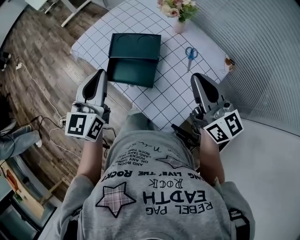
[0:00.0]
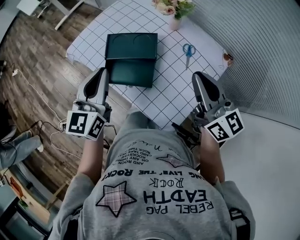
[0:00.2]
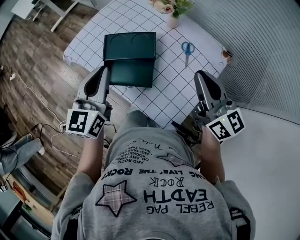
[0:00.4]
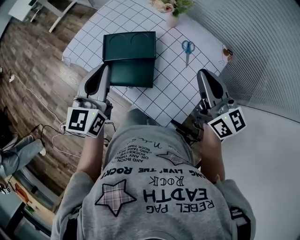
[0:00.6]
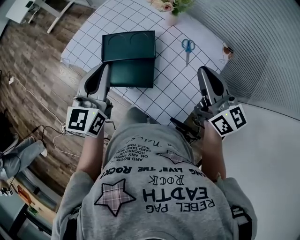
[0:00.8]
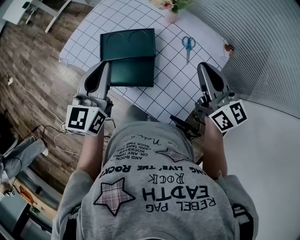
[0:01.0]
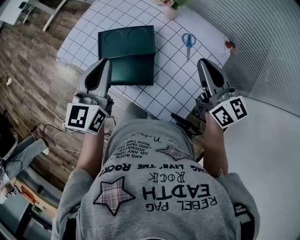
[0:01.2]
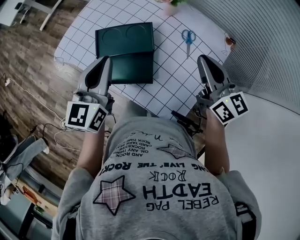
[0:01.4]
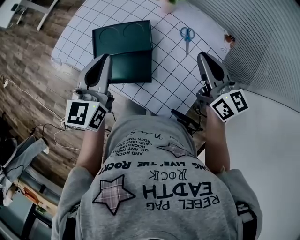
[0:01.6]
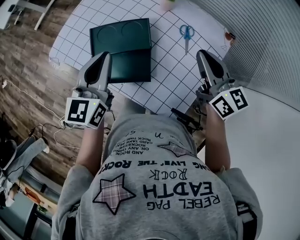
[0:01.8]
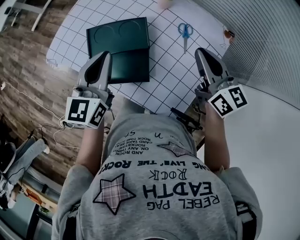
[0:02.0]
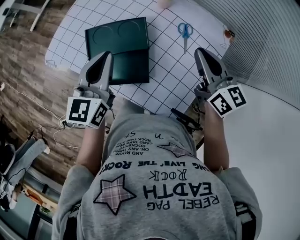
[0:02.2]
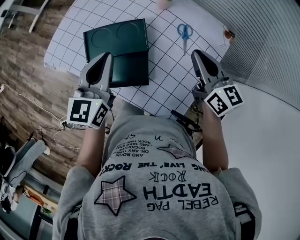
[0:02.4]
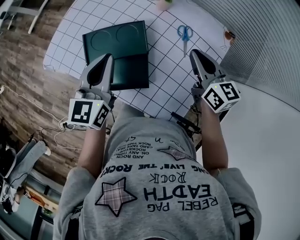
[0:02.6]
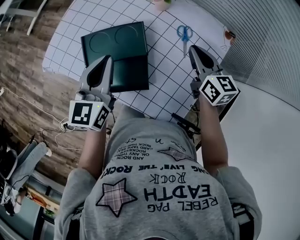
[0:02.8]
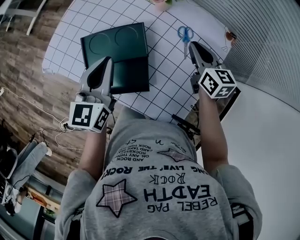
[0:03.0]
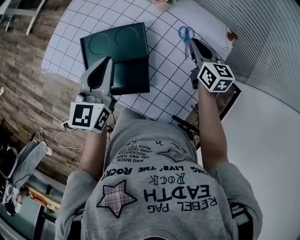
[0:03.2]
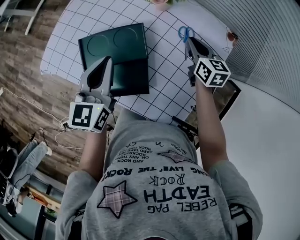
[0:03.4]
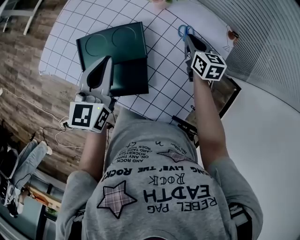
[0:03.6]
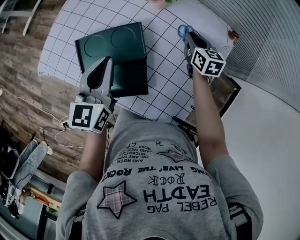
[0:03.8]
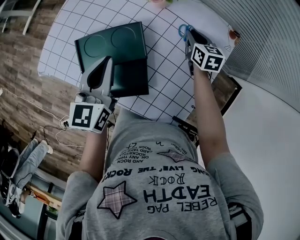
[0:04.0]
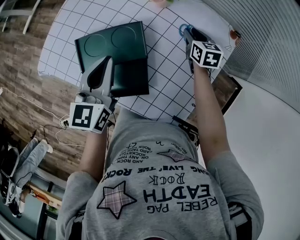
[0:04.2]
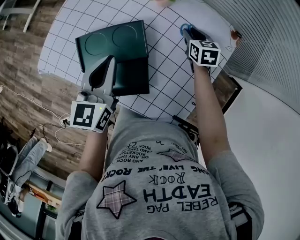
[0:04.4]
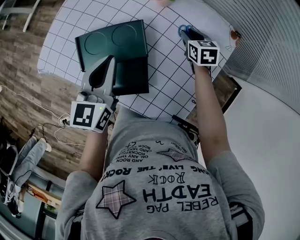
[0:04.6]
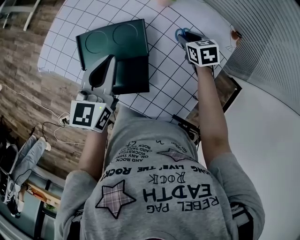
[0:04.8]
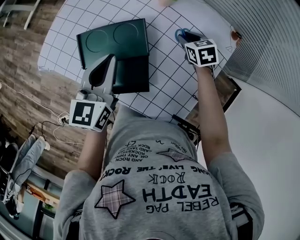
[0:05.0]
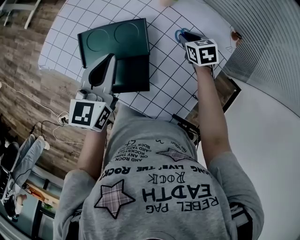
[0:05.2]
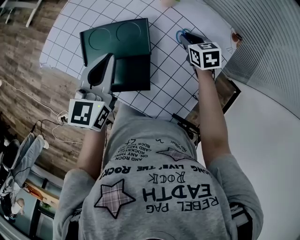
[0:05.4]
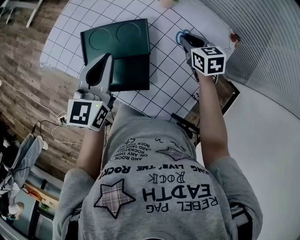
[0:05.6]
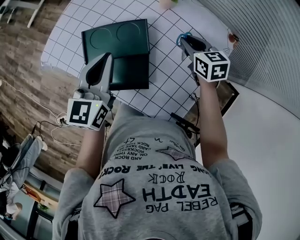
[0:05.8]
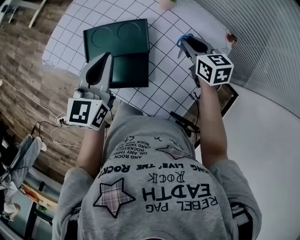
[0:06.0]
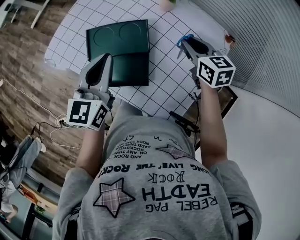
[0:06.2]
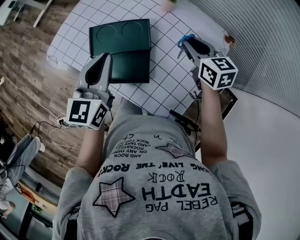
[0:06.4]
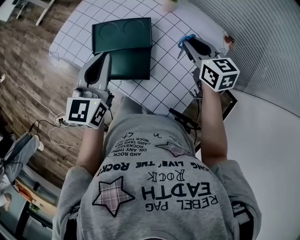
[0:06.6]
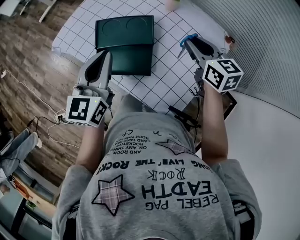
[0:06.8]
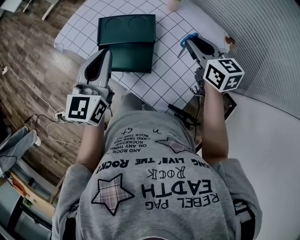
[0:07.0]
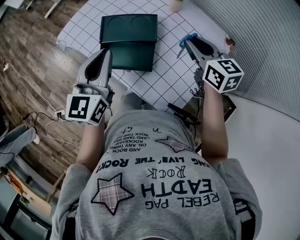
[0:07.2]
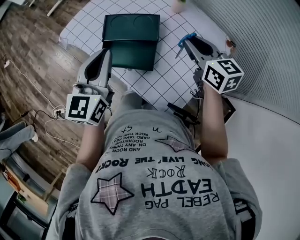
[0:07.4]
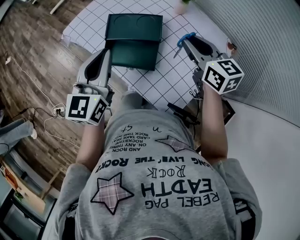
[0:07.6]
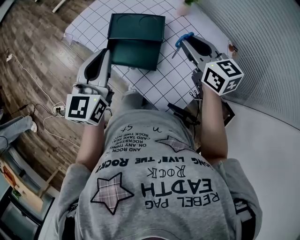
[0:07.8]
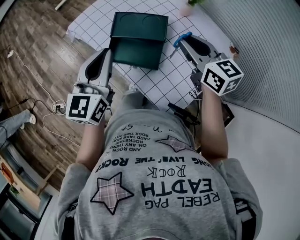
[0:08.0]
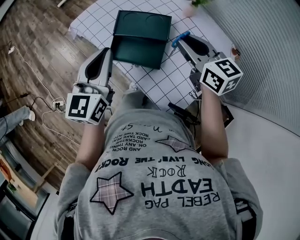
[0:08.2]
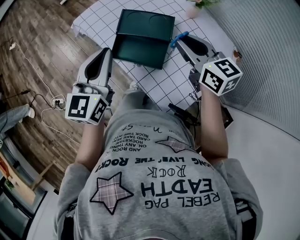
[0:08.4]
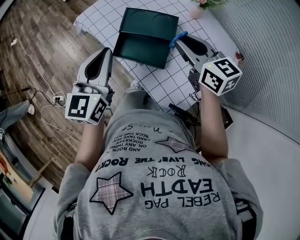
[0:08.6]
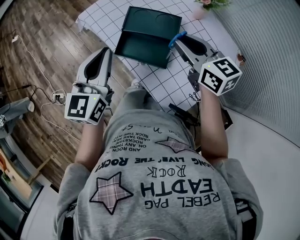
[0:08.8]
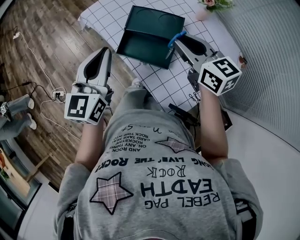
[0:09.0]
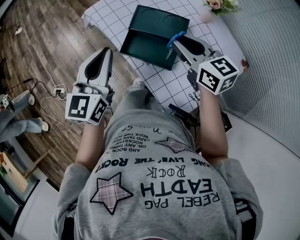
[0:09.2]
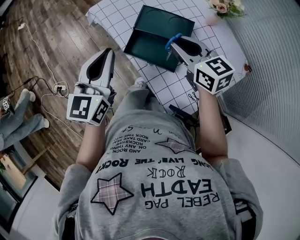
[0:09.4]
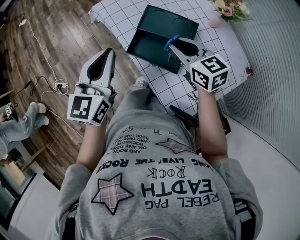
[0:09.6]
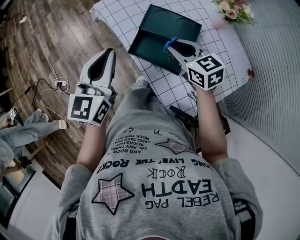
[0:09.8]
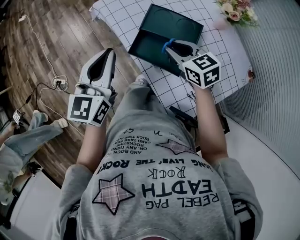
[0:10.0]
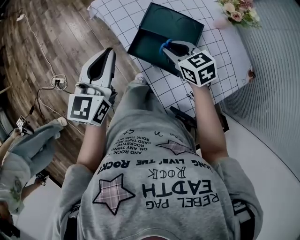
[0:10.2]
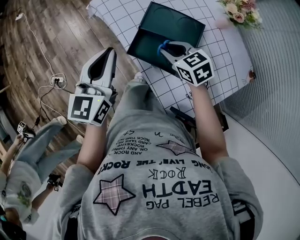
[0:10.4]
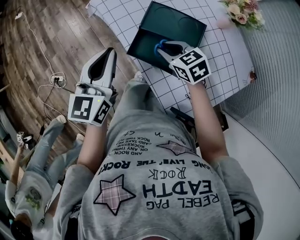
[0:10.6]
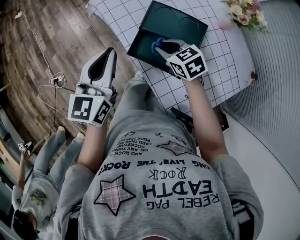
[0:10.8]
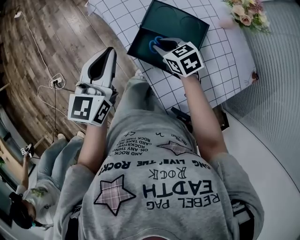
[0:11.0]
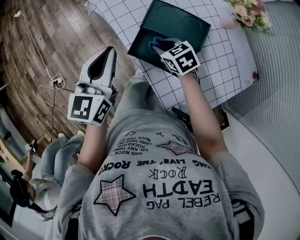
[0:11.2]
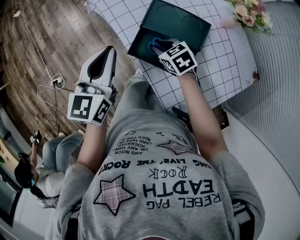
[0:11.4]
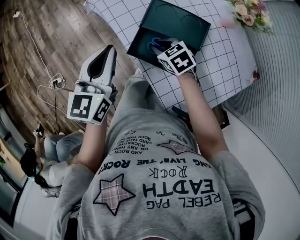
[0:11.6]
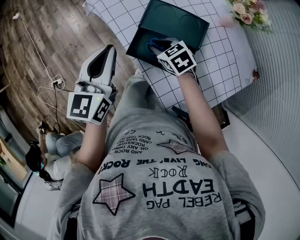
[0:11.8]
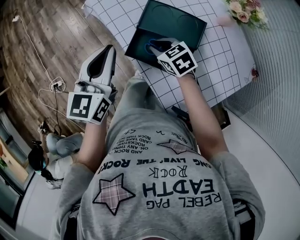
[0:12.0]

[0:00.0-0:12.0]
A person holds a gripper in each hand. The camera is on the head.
0:00.0 to 0:01.6: The right gripper shifts roughly 10 cm downward and forward, while the left gripper moves forward and downward, about 10 cm.
0:01.6 to 0:03.0: The left gripper travels downward by some 5 cm. Meanwhile the right gripper heads downward and forward, covering approximately 15 cm.
0:03.0 to 0:04.4: The right gripper moves downward and forward, roughly 15 cm, rotates about 20 degrees, and opens up.
0:04.4 to 0:06.0: The right gripper moves upward, backward and to the left, about 15 cm.
0:06.0 to 0:07.6: The right gripper heads upward, to the left and backward, covering roughly 15 cm, and changes its angle by roughly 20 degrees; the left gripper moves backward, upward and to the left, about 15 cm.
0:07.6 to 0:09.0: The left gripper moves to the left, about 5 cm, while the right gripper heads to the left, covering about 10 cm.
0:09.0 to 0:10.4: The left gripper moves about 5 cm; the right gripper goes approximately 15 cm downward and to the left, and swivels some 30 degrees.
0:10.4 to 0:12.0: The right gripper shifts some 5 cm downward.

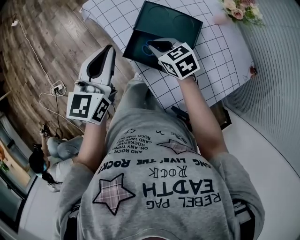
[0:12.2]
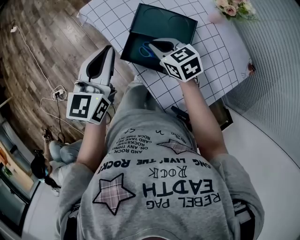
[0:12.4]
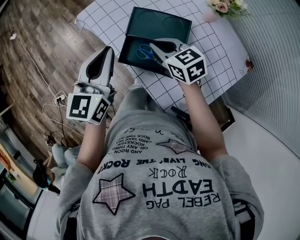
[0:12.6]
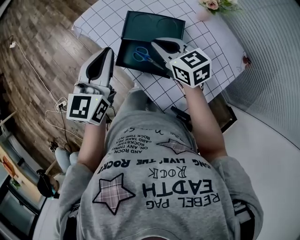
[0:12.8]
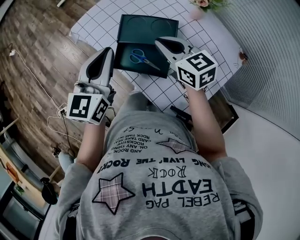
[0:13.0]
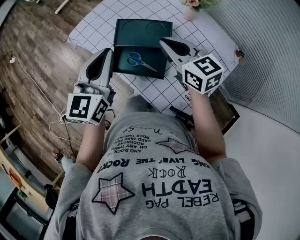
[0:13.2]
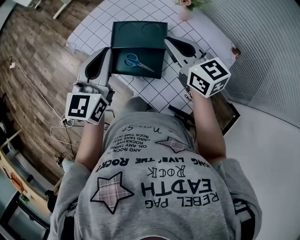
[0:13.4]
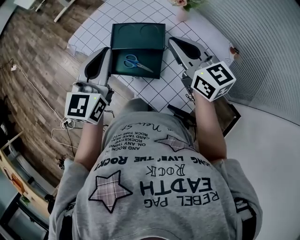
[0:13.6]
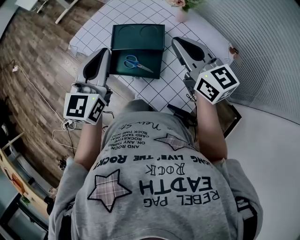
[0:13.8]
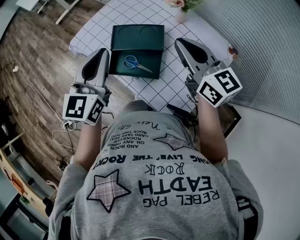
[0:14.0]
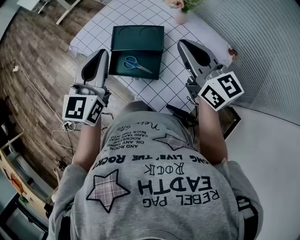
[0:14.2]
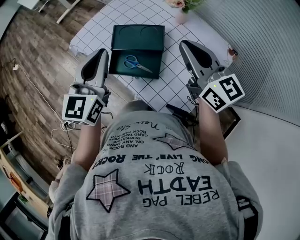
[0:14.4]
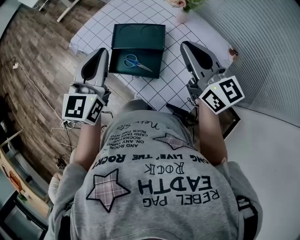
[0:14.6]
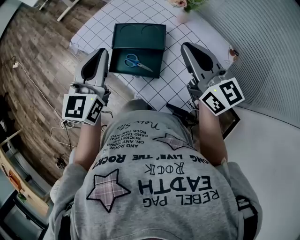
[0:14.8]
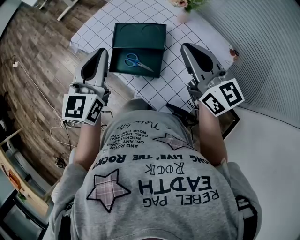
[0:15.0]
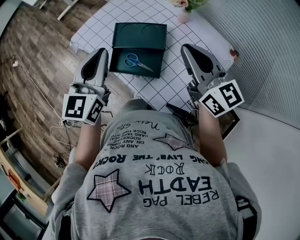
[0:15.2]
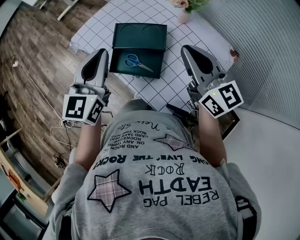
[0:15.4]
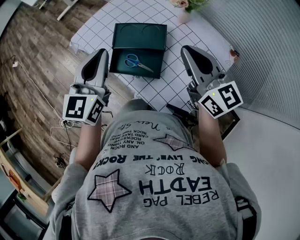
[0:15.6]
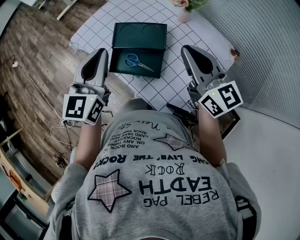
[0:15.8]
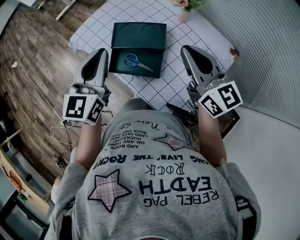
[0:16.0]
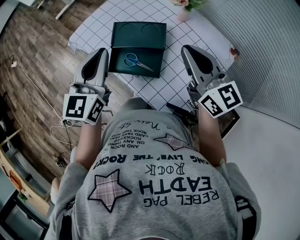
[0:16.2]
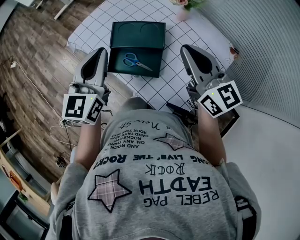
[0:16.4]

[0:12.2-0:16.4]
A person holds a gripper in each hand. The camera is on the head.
0:12.2 to 0:13.6: The right gripper moves upward and to the right, approximately 25 cm, and angles its fingers upward, by roughly 30 degrees. Meanwhile the left gripper goes roughly 10 cm to the right and upward.
0:13.6 to 0:15.0: The right gripper shifts by roughly 5 cm.
0:15.0 to 0:16.4: There are only small adjustments of the grippers.

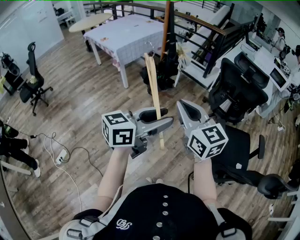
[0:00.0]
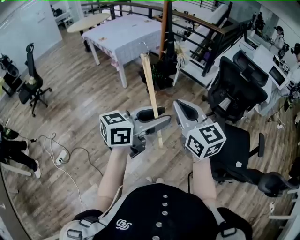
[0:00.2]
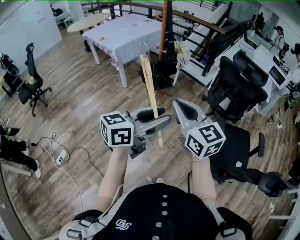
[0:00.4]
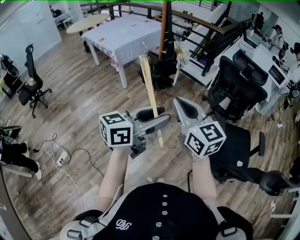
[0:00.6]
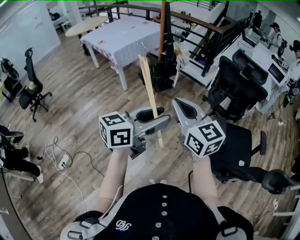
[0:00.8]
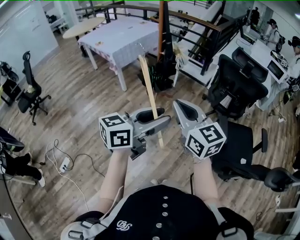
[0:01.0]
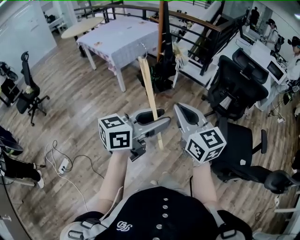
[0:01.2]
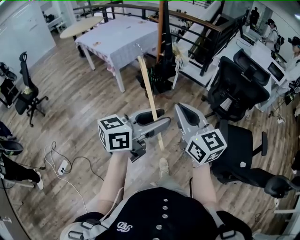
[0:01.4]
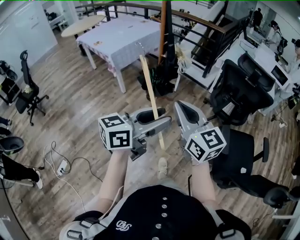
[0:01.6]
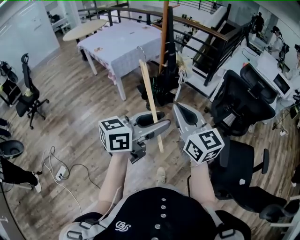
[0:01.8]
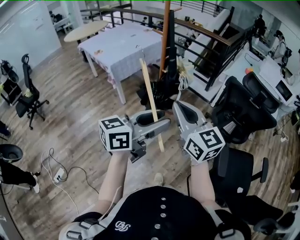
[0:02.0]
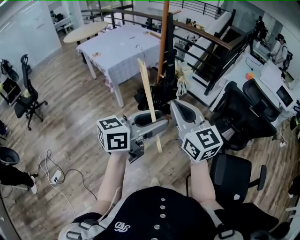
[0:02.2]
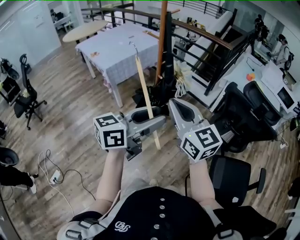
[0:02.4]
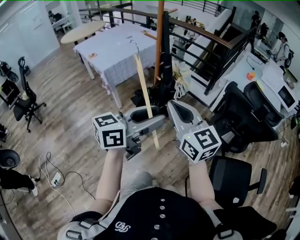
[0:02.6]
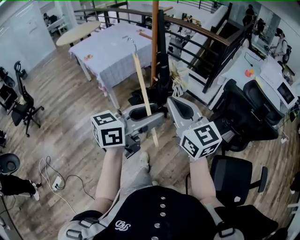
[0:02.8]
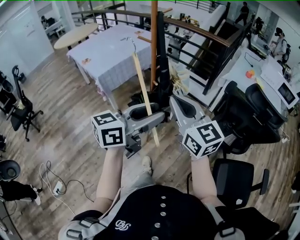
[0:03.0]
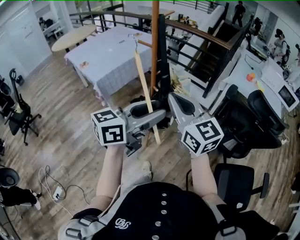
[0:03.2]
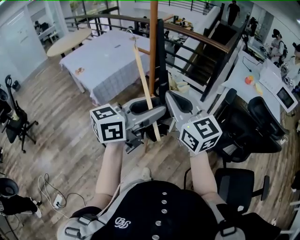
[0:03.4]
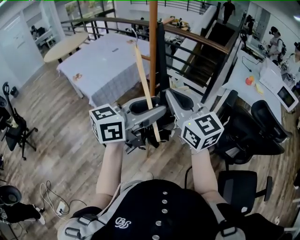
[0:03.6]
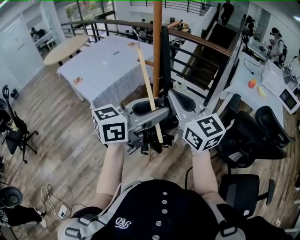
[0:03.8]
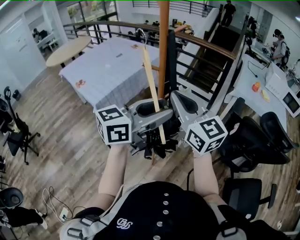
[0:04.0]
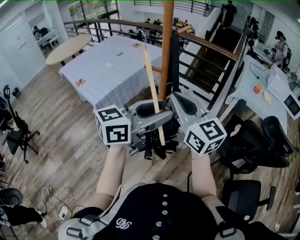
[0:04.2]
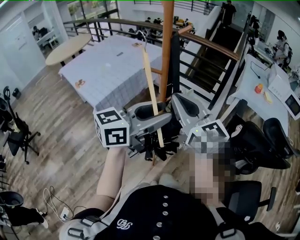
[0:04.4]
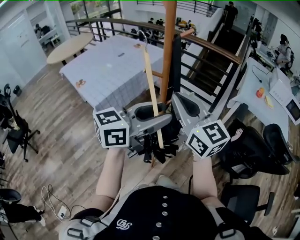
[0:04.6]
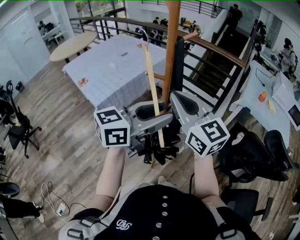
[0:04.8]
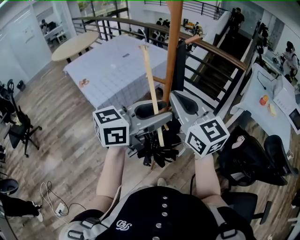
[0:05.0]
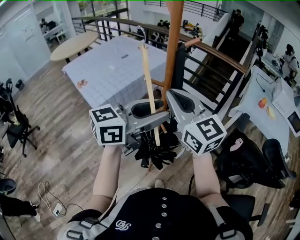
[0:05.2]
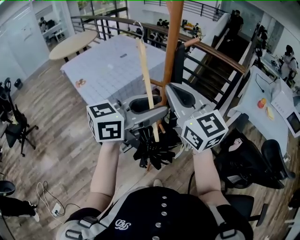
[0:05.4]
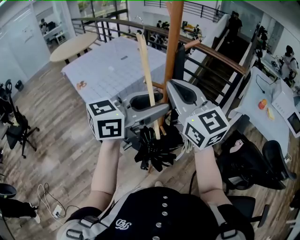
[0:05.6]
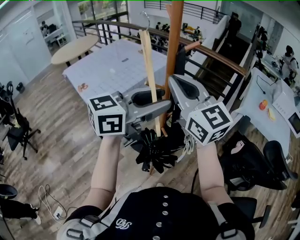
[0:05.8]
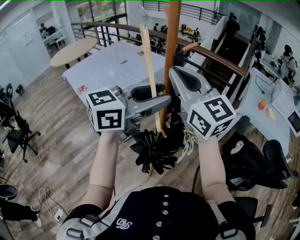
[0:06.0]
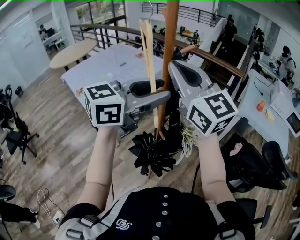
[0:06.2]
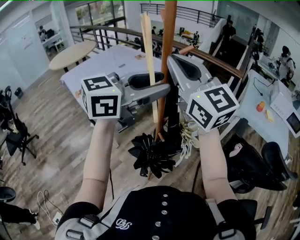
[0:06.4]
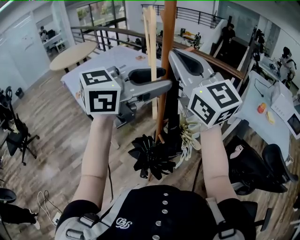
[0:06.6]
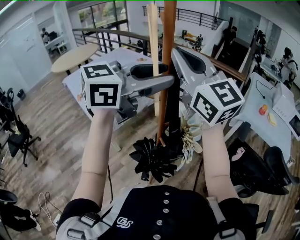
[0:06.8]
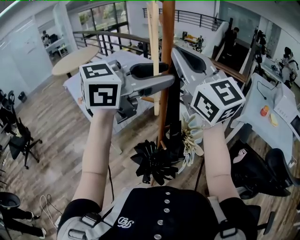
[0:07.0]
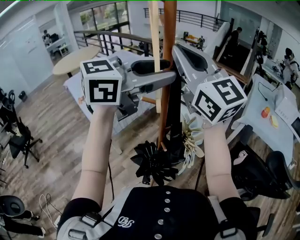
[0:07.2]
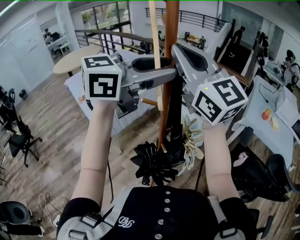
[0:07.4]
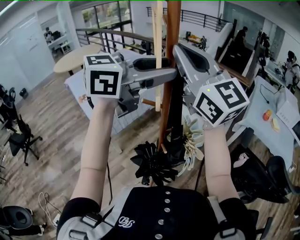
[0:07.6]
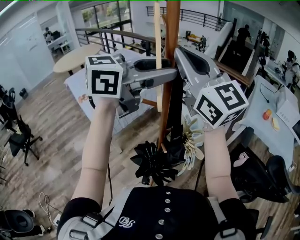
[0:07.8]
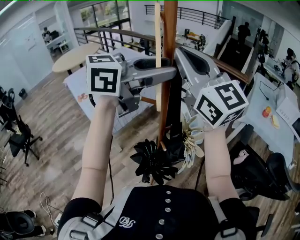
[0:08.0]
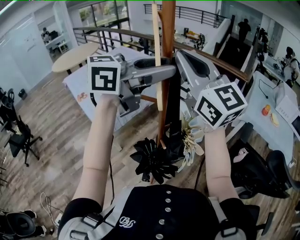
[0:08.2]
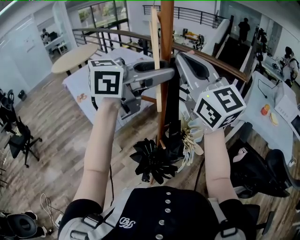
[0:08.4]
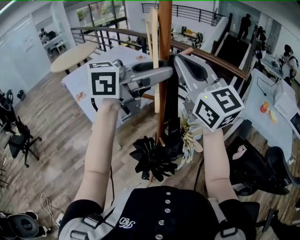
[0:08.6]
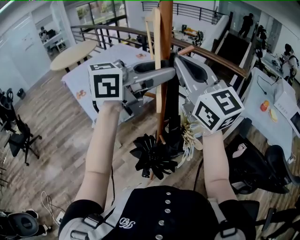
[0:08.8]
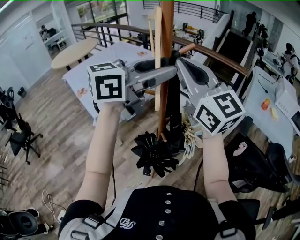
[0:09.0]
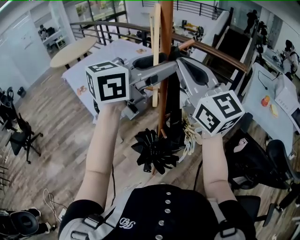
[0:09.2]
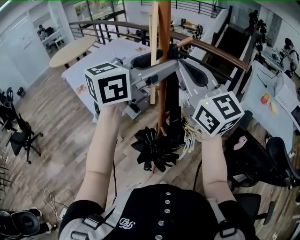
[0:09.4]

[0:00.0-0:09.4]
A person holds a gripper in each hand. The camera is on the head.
0:00.0 to 0:01.6: The two grippers go about 10 cm forward.
0:01.6 to 0:03.2: Both grippers move forward, roughly 35 cm.
0:03.2 to 0:04.8: Both grippers move forward and to the left, about 20 cm.
0:04.8 to 0:06.2: The two grippers go roughly 10 cm upward and forward.
0:06.2 to 0:07.8: The right gripper shifts roughly 5 cm forward; the left gripper moves forward and upward, roughly 10 cm.
0:07.8 to 0:09.4: The right gripper is displaced downward by some 5 cm.
